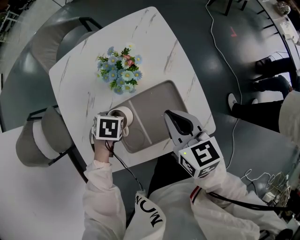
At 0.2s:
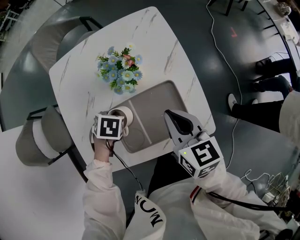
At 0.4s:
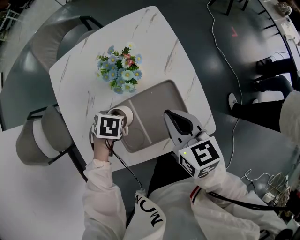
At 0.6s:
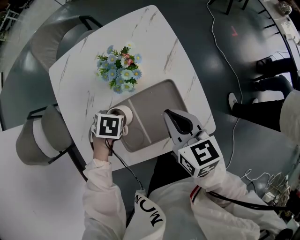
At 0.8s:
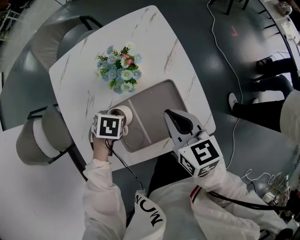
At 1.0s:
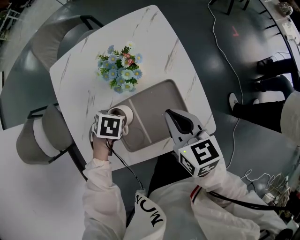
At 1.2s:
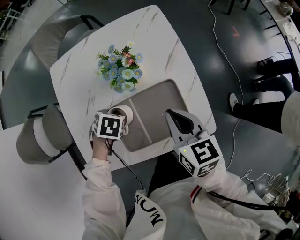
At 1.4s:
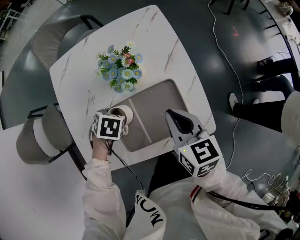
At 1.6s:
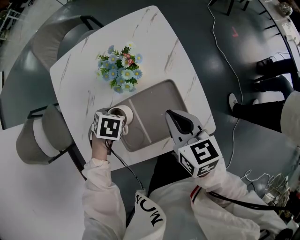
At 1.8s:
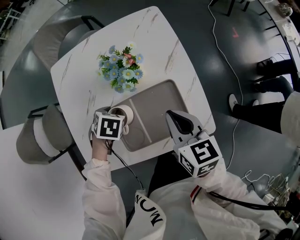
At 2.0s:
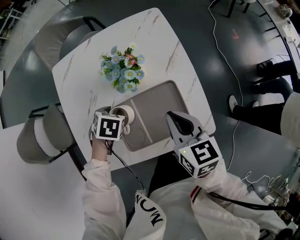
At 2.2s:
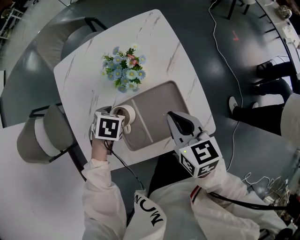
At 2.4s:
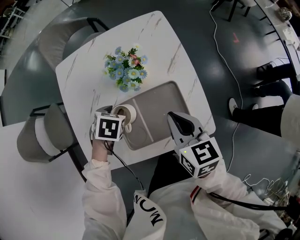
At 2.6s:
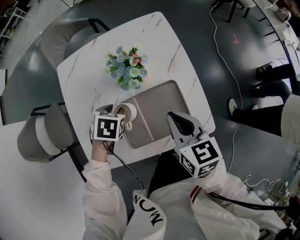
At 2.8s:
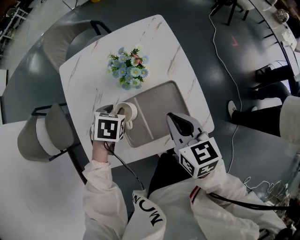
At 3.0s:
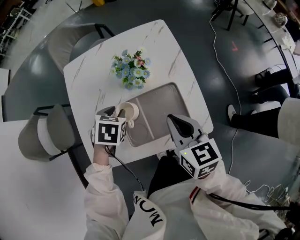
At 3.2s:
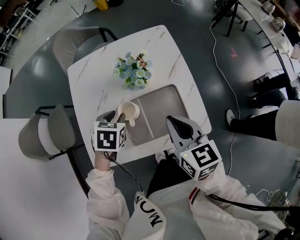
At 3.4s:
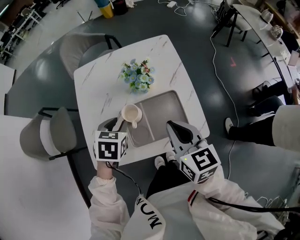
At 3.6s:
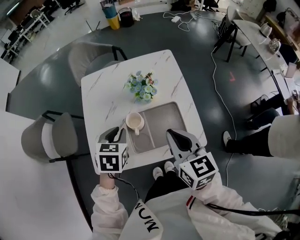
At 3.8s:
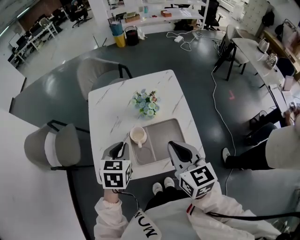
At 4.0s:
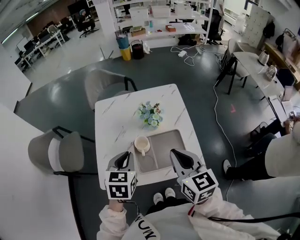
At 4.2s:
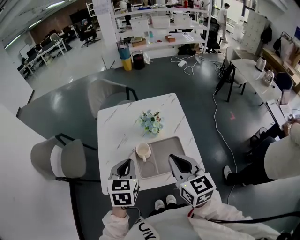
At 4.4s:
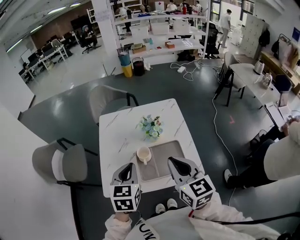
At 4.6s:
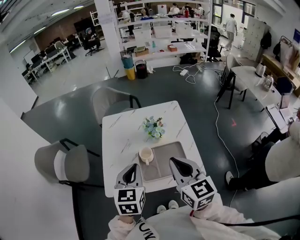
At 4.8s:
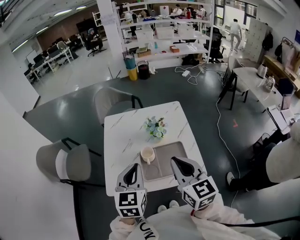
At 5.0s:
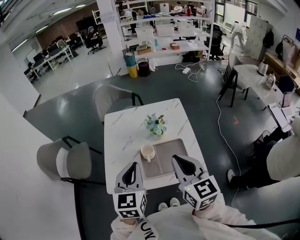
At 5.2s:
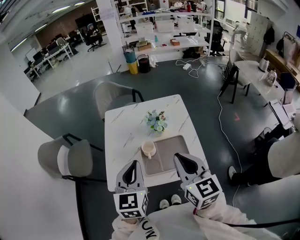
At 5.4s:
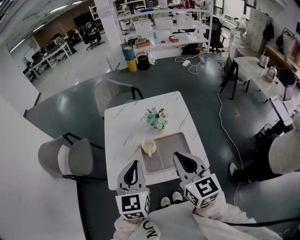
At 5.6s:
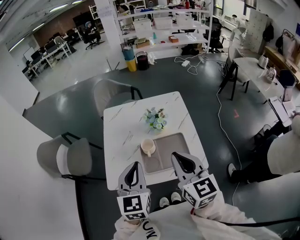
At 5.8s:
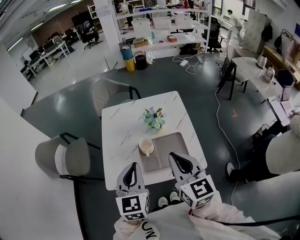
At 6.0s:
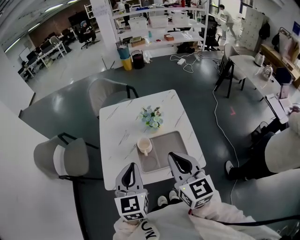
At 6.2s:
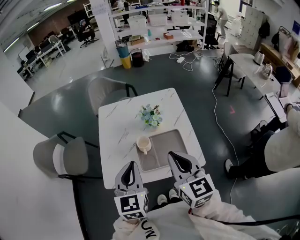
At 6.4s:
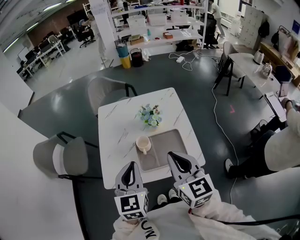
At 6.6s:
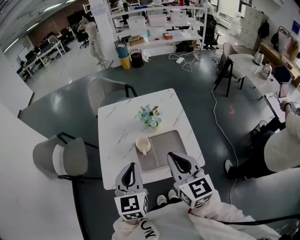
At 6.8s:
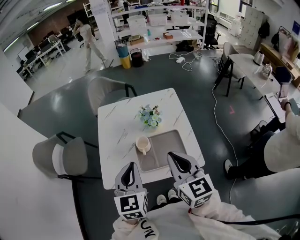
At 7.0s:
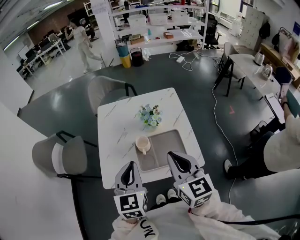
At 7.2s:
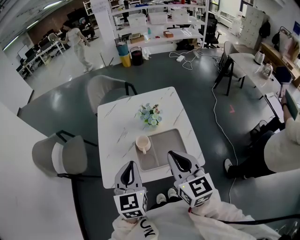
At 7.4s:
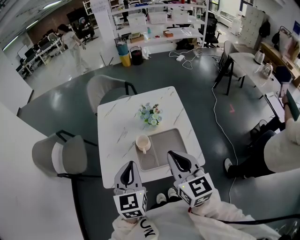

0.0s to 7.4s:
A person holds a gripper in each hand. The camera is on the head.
0.0s to 1.4s: The grippers move only a little.
1.4s to 3.0s: The right gripper heads upward, covering about 5 cm. Meanwhile the left gripper shifts some 10 cm upward, and opens up.
3.0s to 4.4s: Both grippers move upward and backward, about 25 cm. The left gripper angles its fingers upward, by roughly 40 degrees, and closes up.
4.4s to 6.0s: The left gripper shifts by roughly 5 cm.
6.0s to 7.4s: Neither gripper changes place.

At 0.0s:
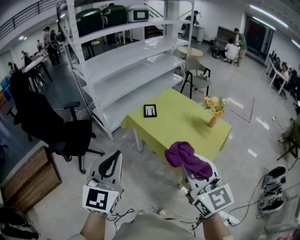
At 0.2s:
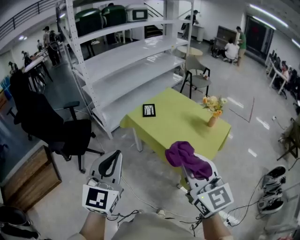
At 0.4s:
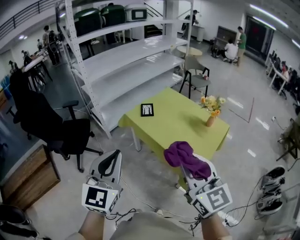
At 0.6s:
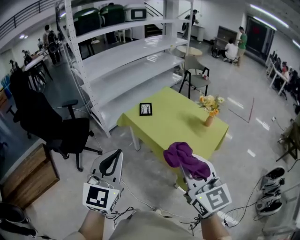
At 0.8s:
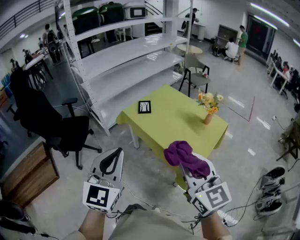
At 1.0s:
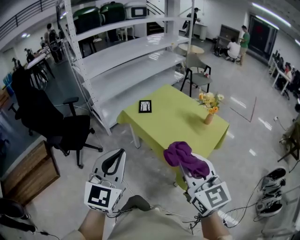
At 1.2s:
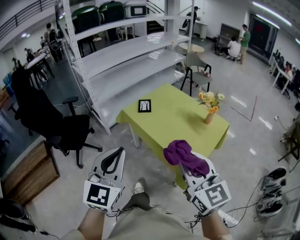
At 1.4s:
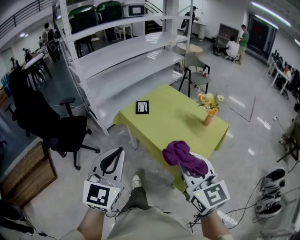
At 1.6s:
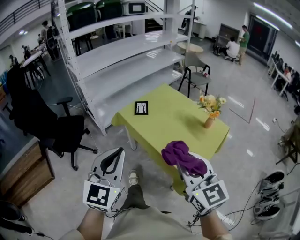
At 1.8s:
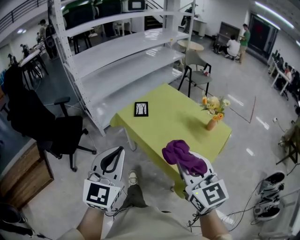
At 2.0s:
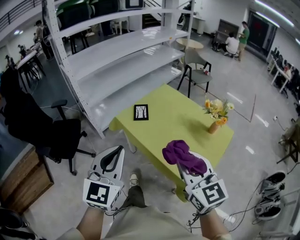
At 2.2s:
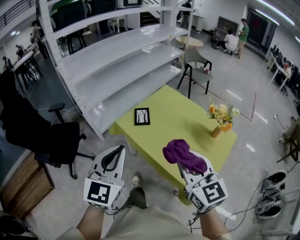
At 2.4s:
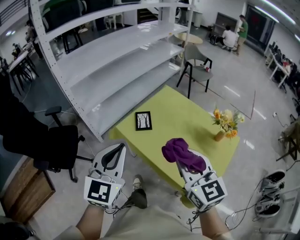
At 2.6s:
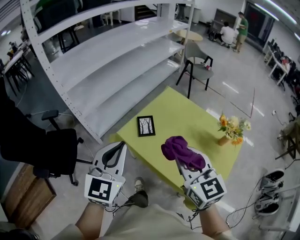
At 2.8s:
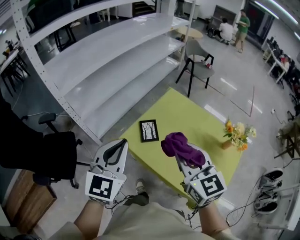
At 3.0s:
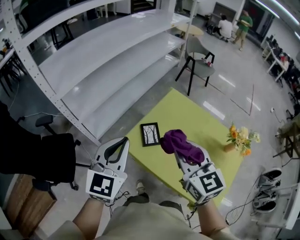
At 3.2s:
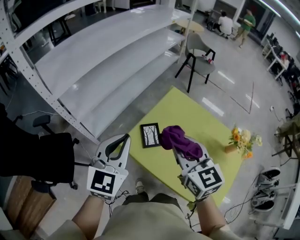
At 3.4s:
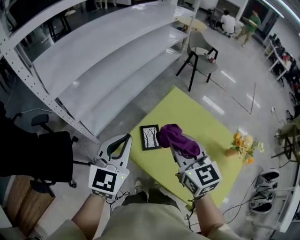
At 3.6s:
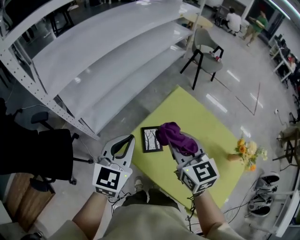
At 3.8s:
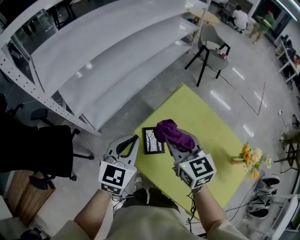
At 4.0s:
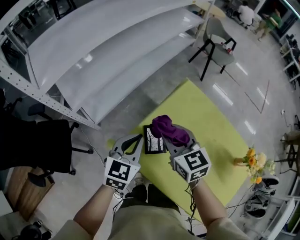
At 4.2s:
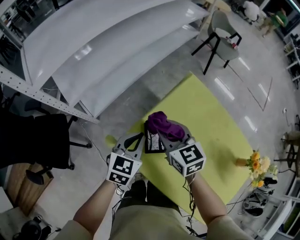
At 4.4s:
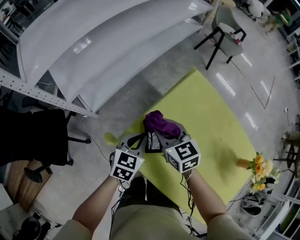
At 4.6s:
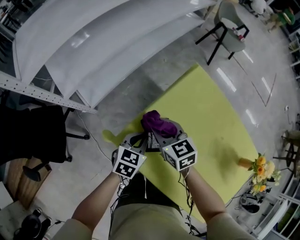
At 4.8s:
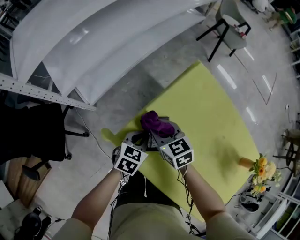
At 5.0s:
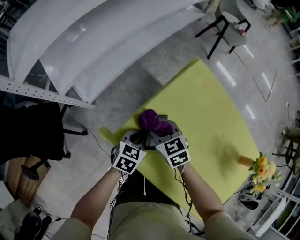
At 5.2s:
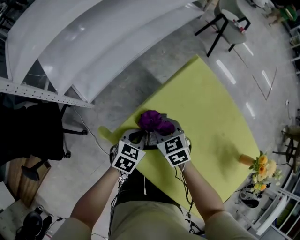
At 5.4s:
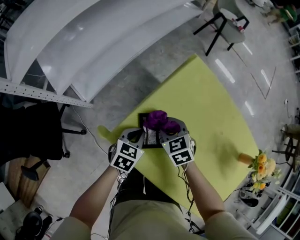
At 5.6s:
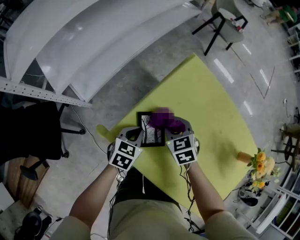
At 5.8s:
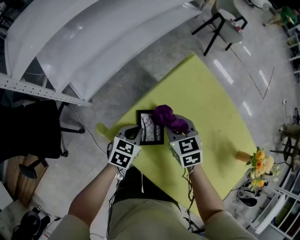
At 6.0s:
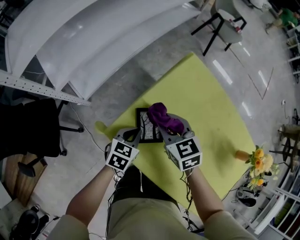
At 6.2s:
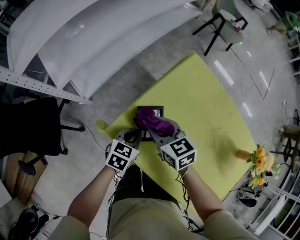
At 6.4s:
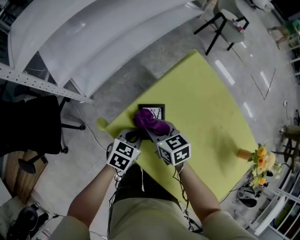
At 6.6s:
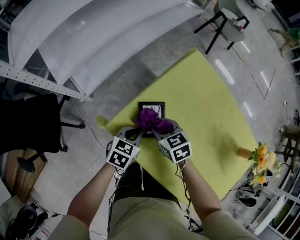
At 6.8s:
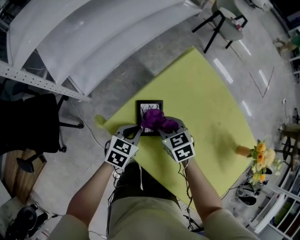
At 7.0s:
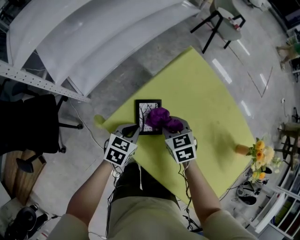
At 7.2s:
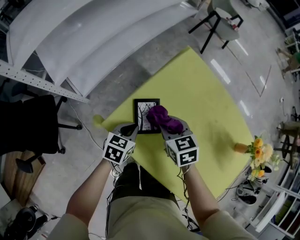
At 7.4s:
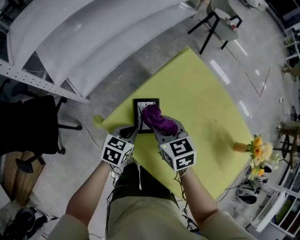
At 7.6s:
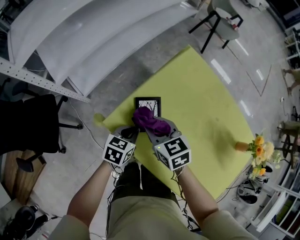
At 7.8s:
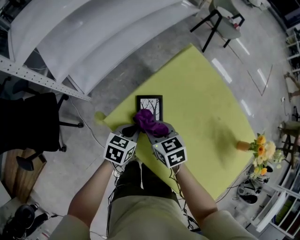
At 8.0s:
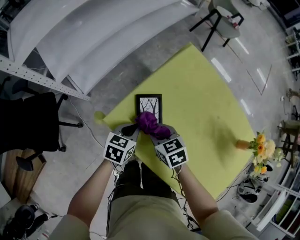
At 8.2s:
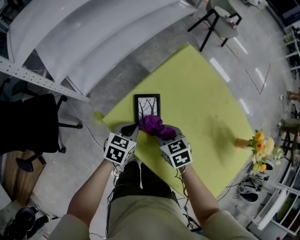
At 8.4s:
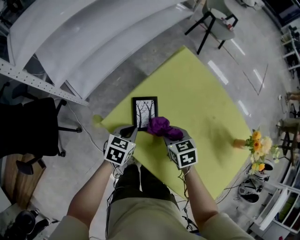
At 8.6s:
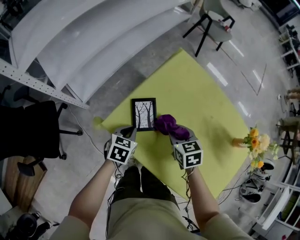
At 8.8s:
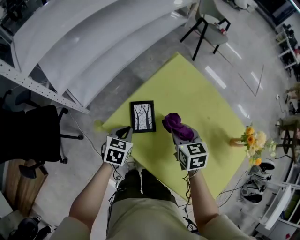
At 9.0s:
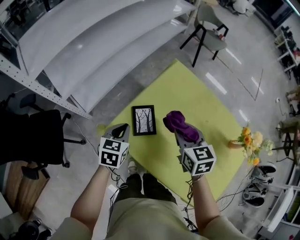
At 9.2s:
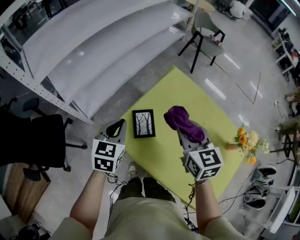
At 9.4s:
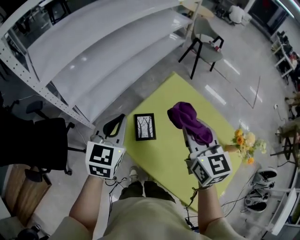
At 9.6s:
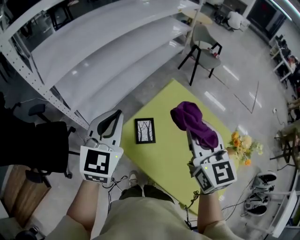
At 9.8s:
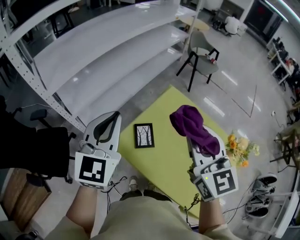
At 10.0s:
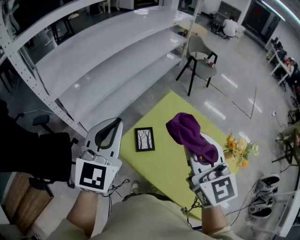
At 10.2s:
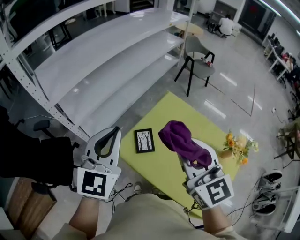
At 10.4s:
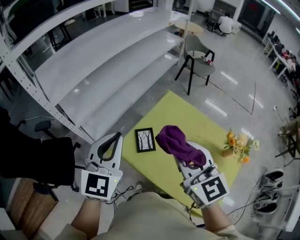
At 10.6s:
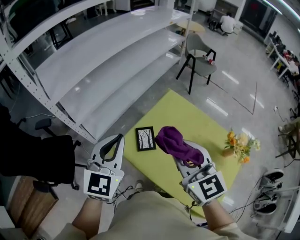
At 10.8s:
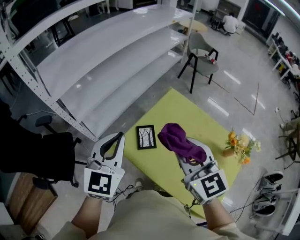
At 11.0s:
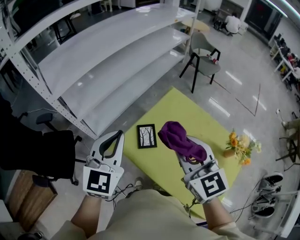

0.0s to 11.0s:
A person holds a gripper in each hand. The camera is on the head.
0.0s to 1.6s: The two grippers go about 10 cm to the right, forward and downward.
1.6s to 3.2s: The pair of grippers is taken forward, some 50 cm.
3.2s to 4.8s: The left gripper goes some 35 cm downward, and tips its fingers downward by some 40 degrees. Meanwhile the right gripper heads downward and forward, covering roughly 35 cm, and swivels approximately 30 degrees.
4.8s to 6.2s: The right gripper travels to the right and back again, roughly 10 cm each way.
6.2s to 7.8s: The right gripper travels backward by approximately 5 cm, and reaches about 10 cm to the right, then returns.
7.8s to 9.4s: The left gripper goes some 30 cm upward, and changes its angle by about 40 degrees; the right gripper moves upward and to the right, approximately 35 cm, and turns by approximately 40 degrees.
9.4s to 11.0s: The right gripper goes some 10 cm backward and upward; the left gripper heads upward and backward, covering about 15 cm.

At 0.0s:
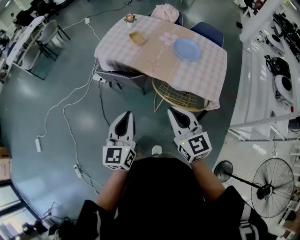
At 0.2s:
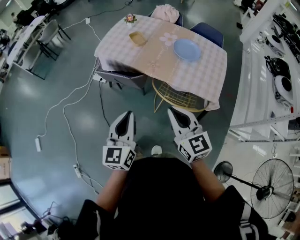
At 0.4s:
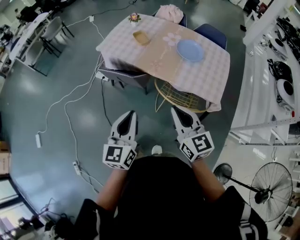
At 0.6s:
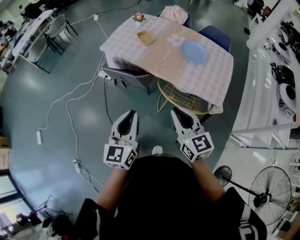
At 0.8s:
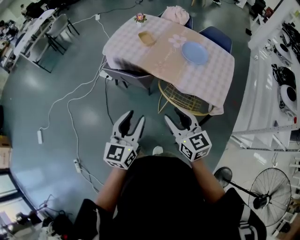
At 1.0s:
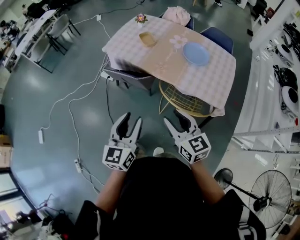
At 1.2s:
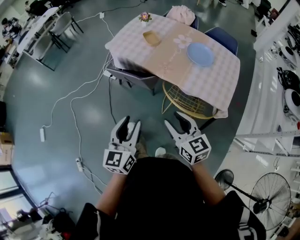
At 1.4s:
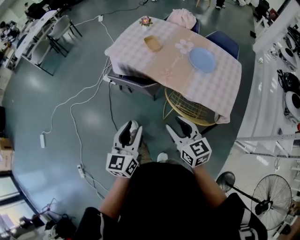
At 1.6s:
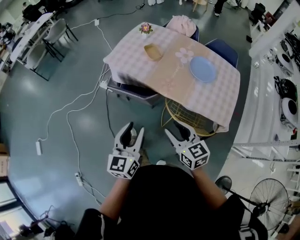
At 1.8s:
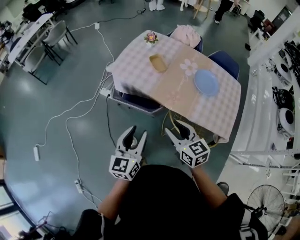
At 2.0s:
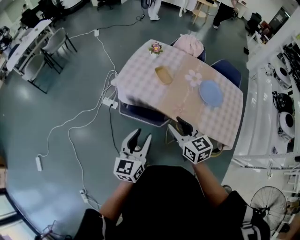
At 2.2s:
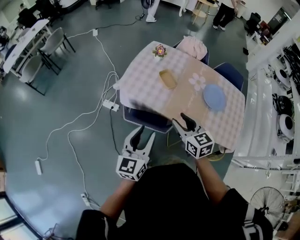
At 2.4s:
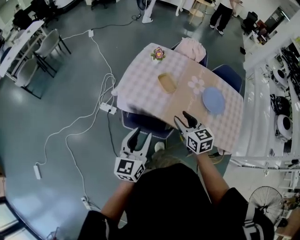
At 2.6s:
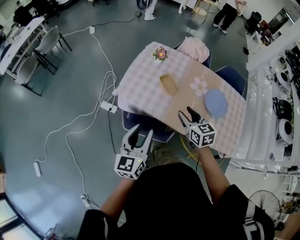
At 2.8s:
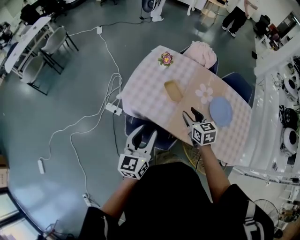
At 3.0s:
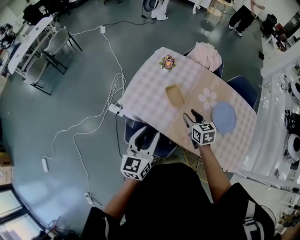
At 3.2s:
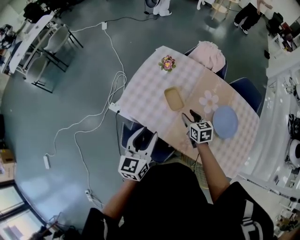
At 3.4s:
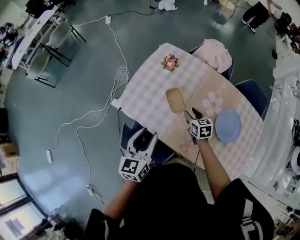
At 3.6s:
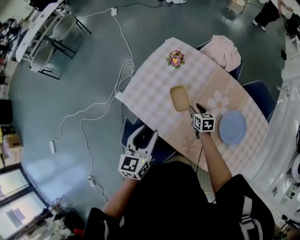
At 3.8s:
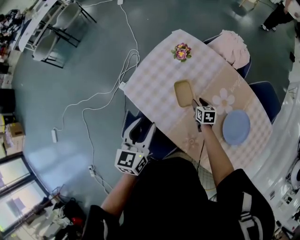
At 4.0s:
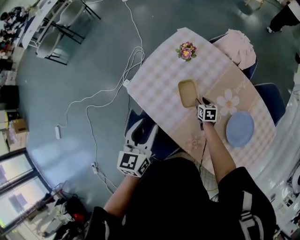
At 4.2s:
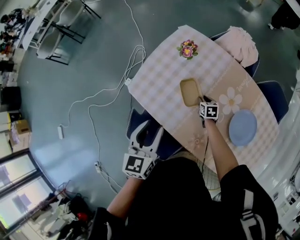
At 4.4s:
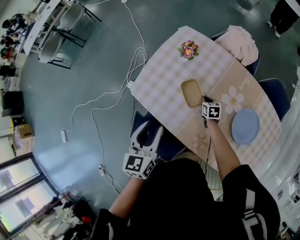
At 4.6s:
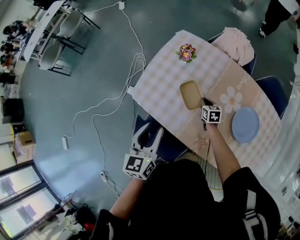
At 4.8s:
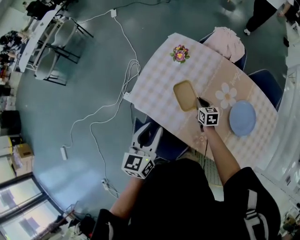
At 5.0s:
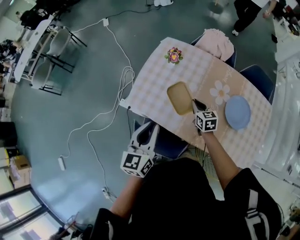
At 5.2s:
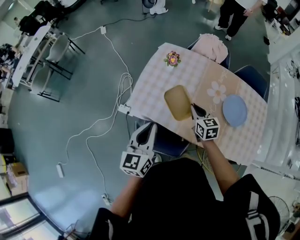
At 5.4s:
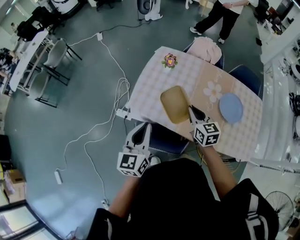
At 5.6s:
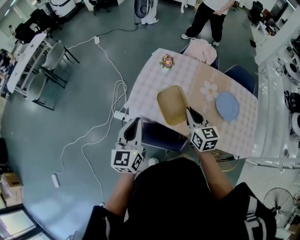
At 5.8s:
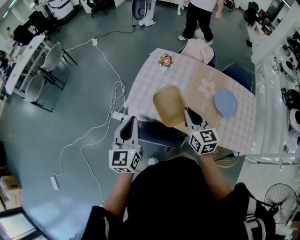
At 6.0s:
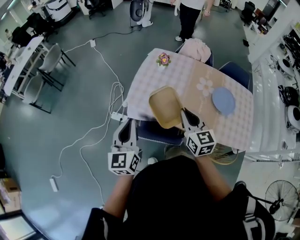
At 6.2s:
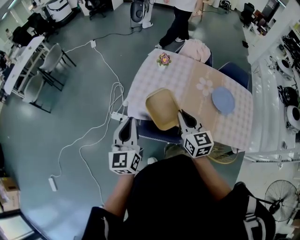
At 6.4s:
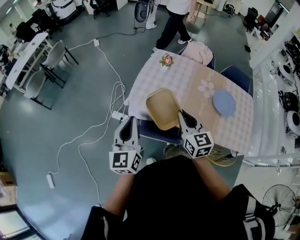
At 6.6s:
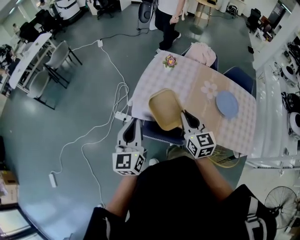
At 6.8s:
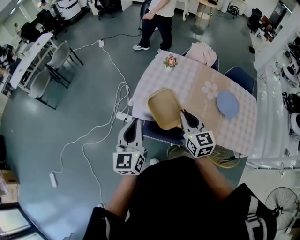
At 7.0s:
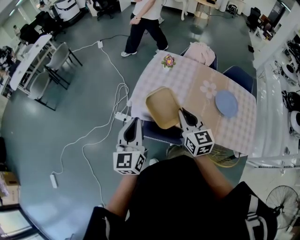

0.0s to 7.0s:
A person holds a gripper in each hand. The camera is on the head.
0.0s to 1.4s: The right gripper travels downward by about 10 cm, and opens its fingers, while the left gripper moves approximately 5 cm, and opens up.
1.4s to 2.8s: The two grippers travel together, forward, approximately 40 cm.
2.8s to 4.2s: The left gripper travels forward and to the right by roughly 15 cm, and turns by approximately 20 degrees, while the right gripper shifts about 35 cm downward and forward, and rotates approximately 30 degrees.
4.2s to 5.6s: The left gripper heads to the left, upward and backward, covering some 20 cm, swivels some 20 degrees, and closes, while the right gripper goes about 40 cm upward and backward, points its fingers approximately 40 degrees further upward, and closes its fingers.
5.6s to 7.0s: The right gripper goes roughly 10 cm backward and to the left. Meanwhile the left gripper moves backward, roughly 5 cm.
